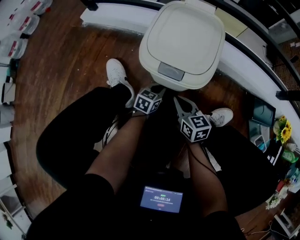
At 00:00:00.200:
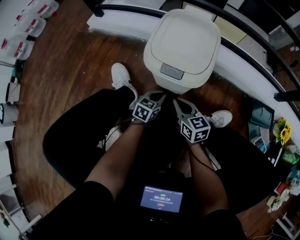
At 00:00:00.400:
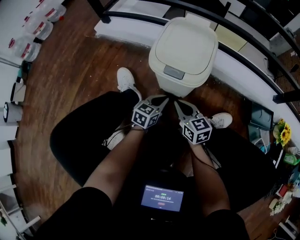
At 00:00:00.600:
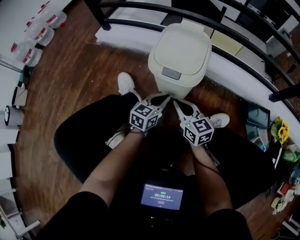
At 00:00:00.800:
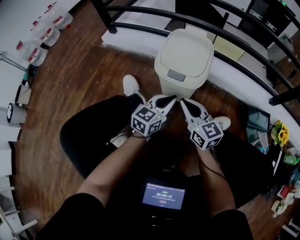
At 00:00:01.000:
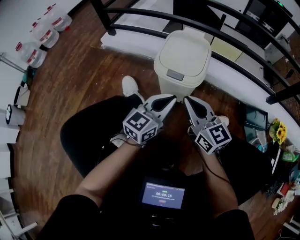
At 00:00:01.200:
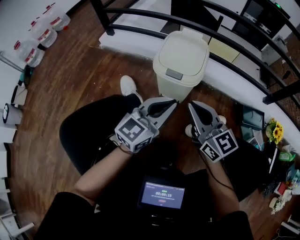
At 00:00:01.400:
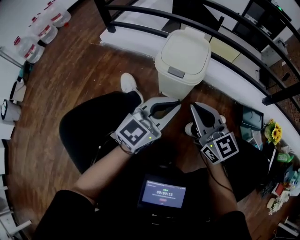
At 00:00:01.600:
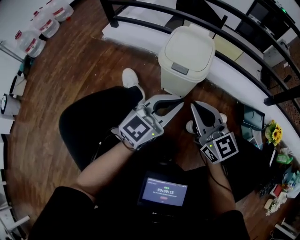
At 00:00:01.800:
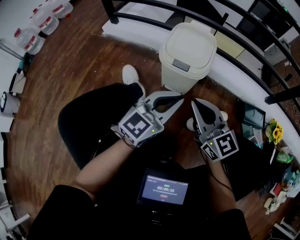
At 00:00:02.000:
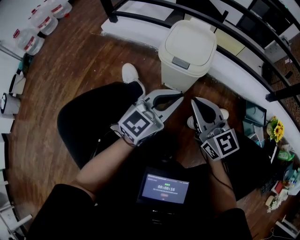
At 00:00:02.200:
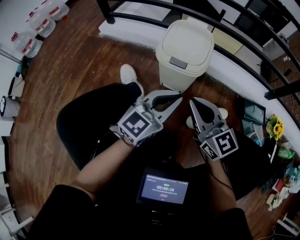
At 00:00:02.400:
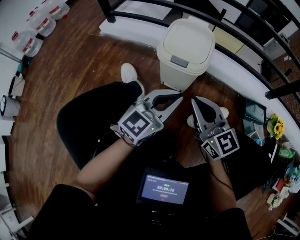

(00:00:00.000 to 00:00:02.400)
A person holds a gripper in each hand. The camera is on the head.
00:00:00.000 - 00:00:01.200: The right gripper moves upward, roughly 35 cm, and rotates some 30 degrees. Meanwhile the left gripper travels upward and backward by approximately 40 cm, and angles its fingers upward, by roughly 30 degrees.
00:00:01.200 - 00:00:02.400: The grippers move only a little.

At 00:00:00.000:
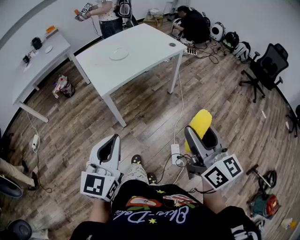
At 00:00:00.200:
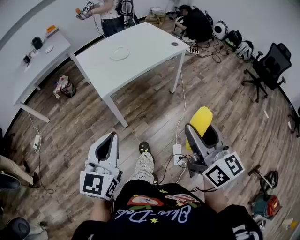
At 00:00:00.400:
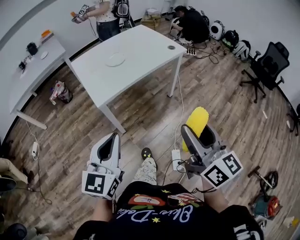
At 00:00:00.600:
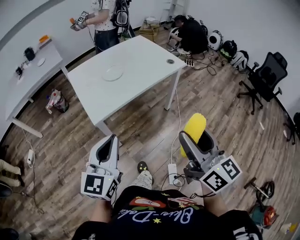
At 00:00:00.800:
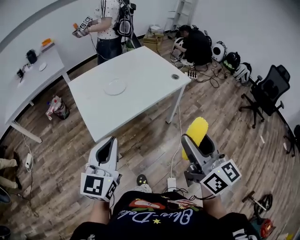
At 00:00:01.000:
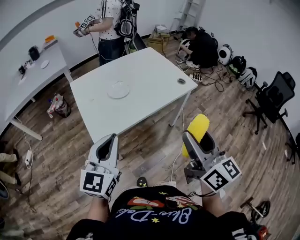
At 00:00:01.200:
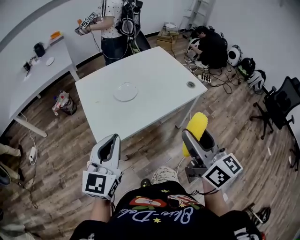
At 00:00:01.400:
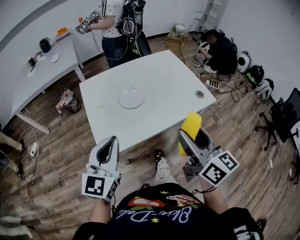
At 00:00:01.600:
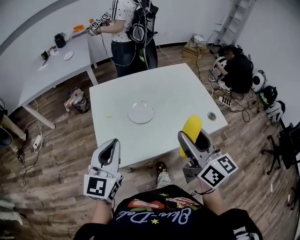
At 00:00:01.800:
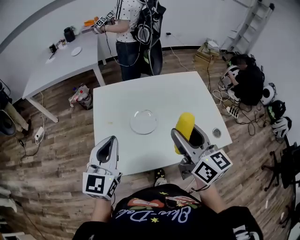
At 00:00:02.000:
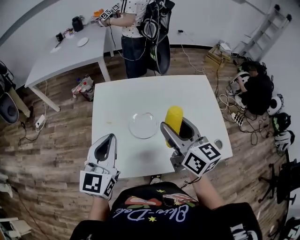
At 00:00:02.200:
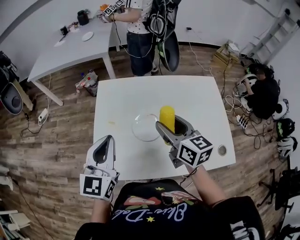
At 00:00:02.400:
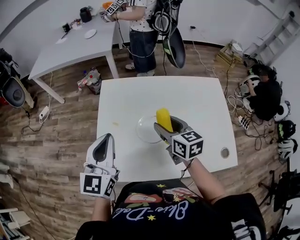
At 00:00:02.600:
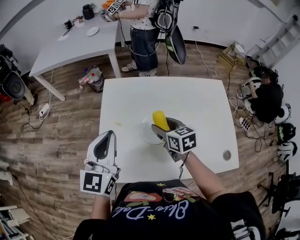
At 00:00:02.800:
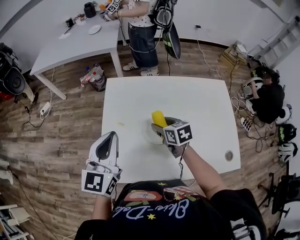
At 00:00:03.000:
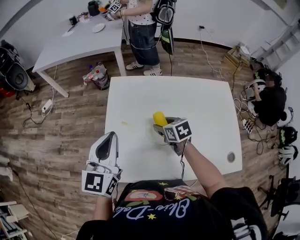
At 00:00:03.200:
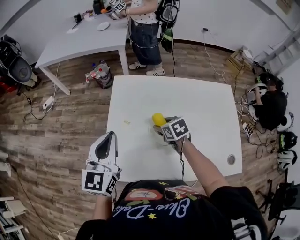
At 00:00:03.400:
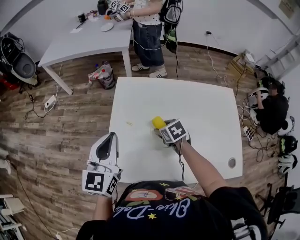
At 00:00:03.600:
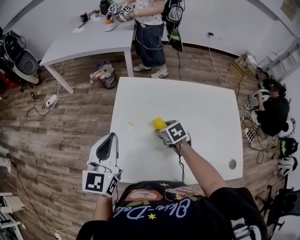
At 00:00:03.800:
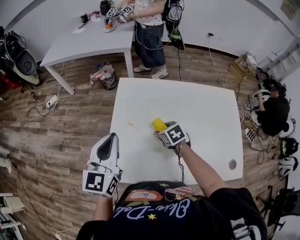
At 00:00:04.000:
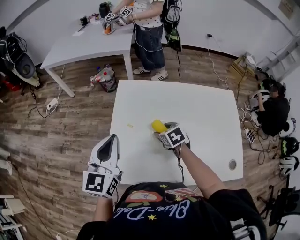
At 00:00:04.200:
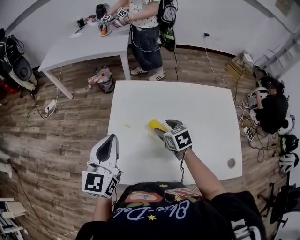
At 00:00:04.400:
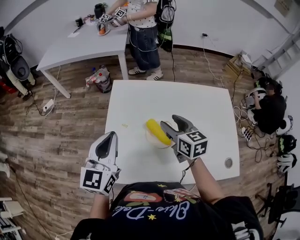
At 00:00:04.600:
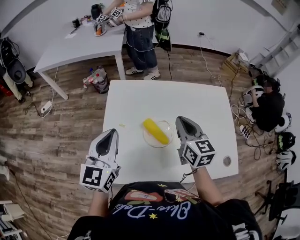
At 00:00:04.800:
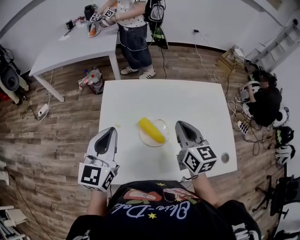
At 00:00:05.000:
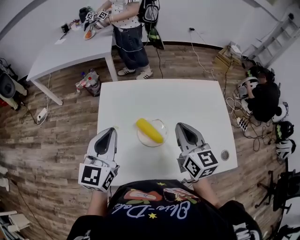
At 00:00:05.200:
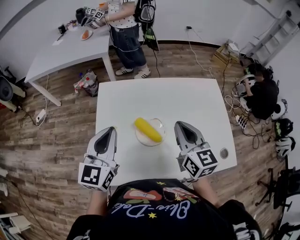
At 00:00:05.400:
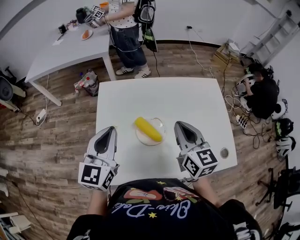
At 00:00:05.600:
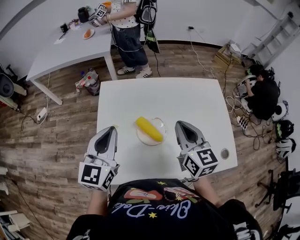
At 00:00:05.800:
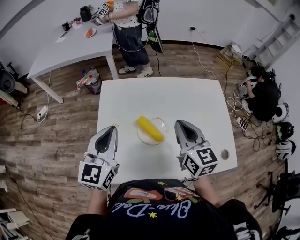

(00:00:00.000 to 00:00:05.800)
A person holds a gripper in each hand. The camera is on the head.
00:00:00.000 - 00:00:01.400: Both grippers are carried forward, some 40 cm.
00:00:01.400 - 00:00:02.800: The left gripper ends up approximately 25 cm from where it was, and rotates some 30 degrees. The right gripper shifts by approximately 50 cm, and tilts its fingers approximately 40 degrees downward.
00:00:02.800 - 00:00:04.400: The right gripper heads upward, covering roughly 10 cm.
00:00:04.400 - 00:00:05.800: The right gripper is displaced upward, to the right and backward by about 10 cm, and closes up.

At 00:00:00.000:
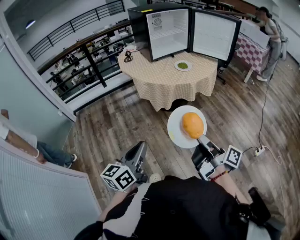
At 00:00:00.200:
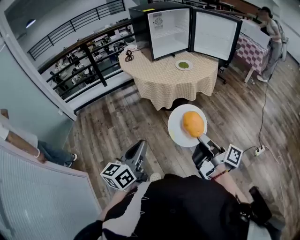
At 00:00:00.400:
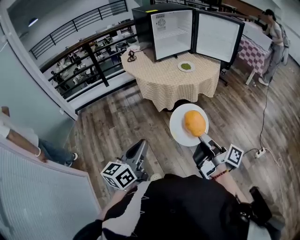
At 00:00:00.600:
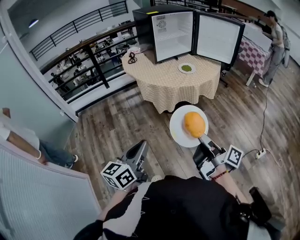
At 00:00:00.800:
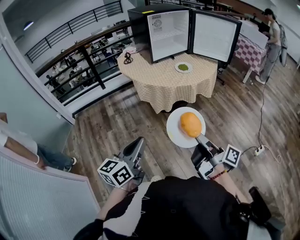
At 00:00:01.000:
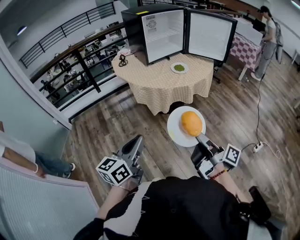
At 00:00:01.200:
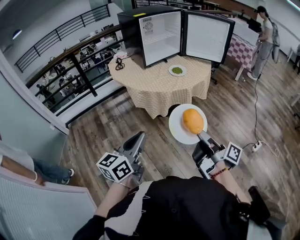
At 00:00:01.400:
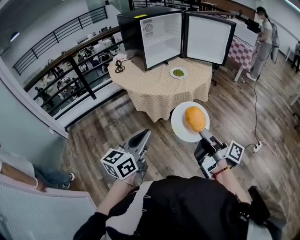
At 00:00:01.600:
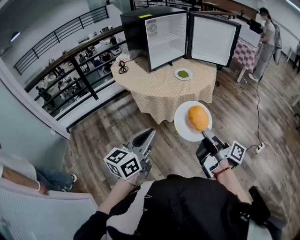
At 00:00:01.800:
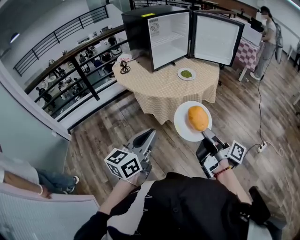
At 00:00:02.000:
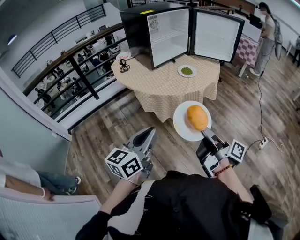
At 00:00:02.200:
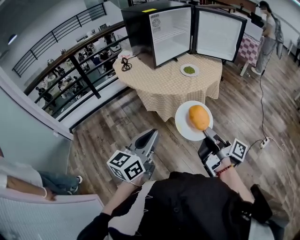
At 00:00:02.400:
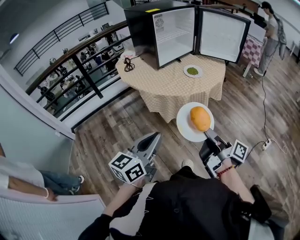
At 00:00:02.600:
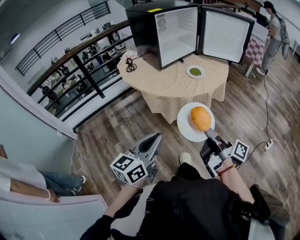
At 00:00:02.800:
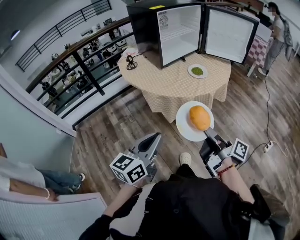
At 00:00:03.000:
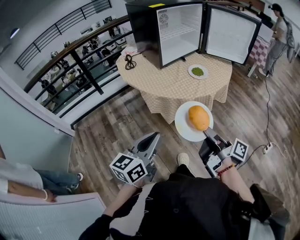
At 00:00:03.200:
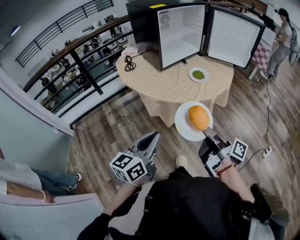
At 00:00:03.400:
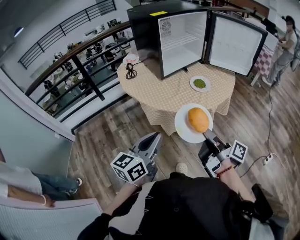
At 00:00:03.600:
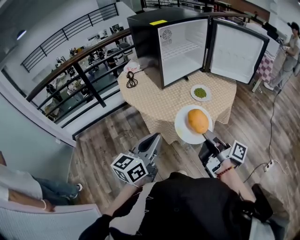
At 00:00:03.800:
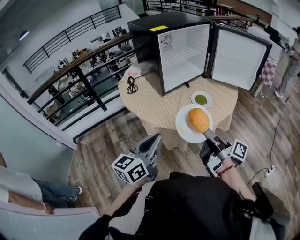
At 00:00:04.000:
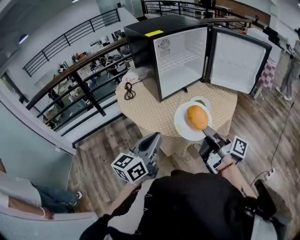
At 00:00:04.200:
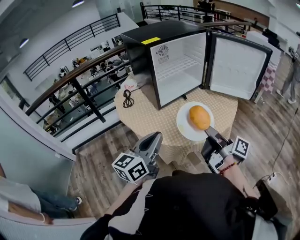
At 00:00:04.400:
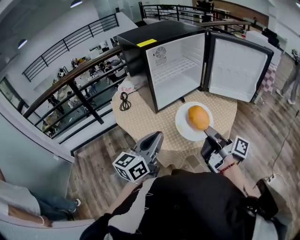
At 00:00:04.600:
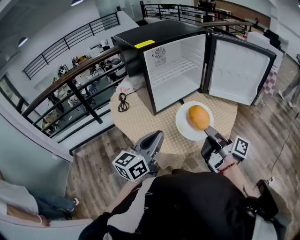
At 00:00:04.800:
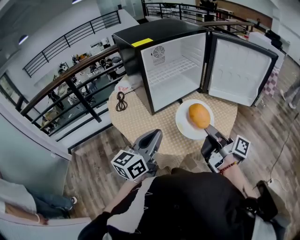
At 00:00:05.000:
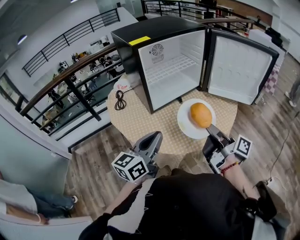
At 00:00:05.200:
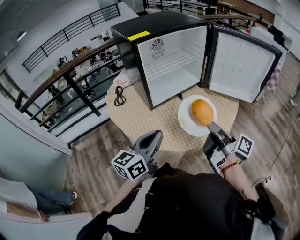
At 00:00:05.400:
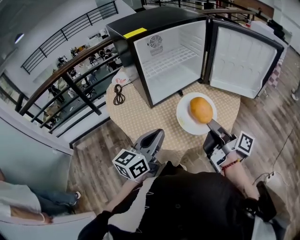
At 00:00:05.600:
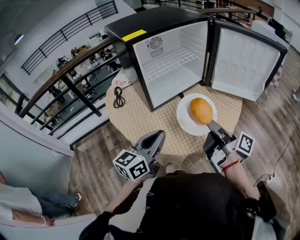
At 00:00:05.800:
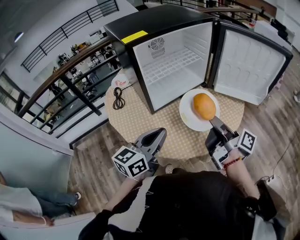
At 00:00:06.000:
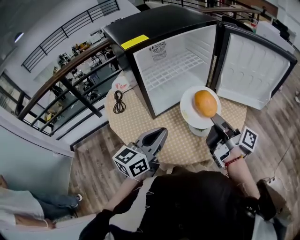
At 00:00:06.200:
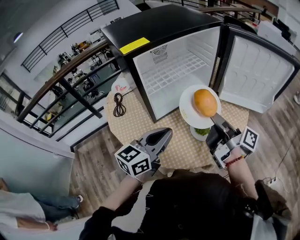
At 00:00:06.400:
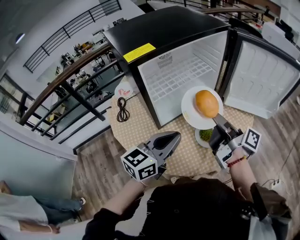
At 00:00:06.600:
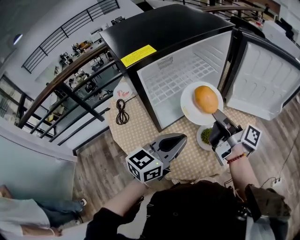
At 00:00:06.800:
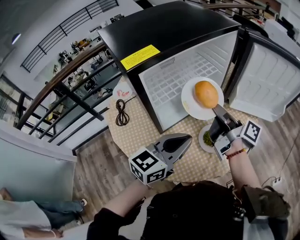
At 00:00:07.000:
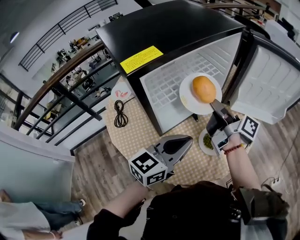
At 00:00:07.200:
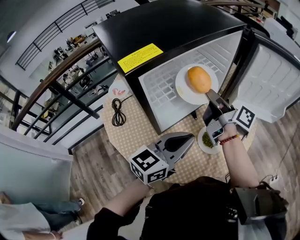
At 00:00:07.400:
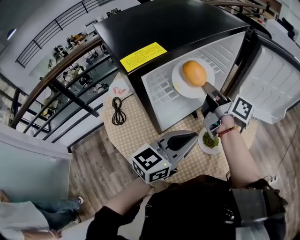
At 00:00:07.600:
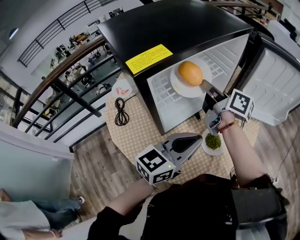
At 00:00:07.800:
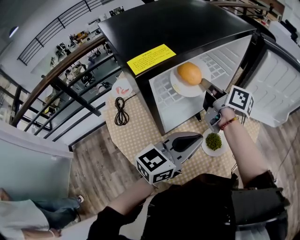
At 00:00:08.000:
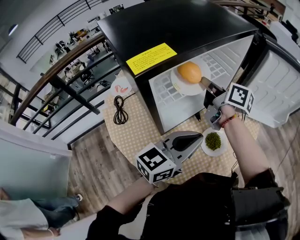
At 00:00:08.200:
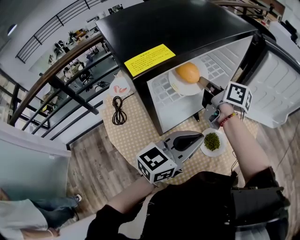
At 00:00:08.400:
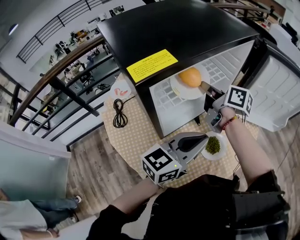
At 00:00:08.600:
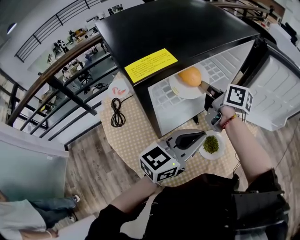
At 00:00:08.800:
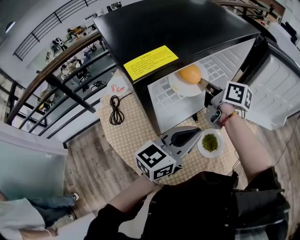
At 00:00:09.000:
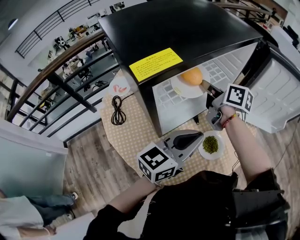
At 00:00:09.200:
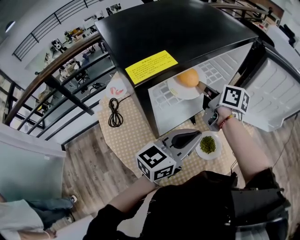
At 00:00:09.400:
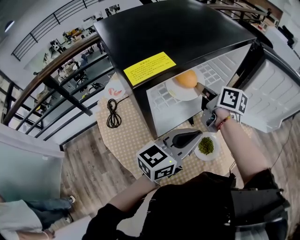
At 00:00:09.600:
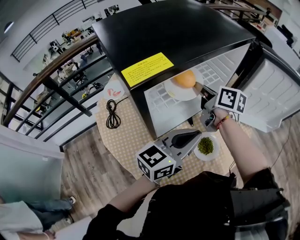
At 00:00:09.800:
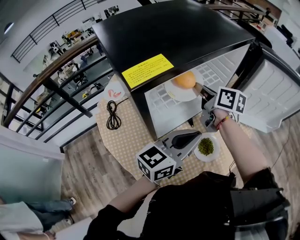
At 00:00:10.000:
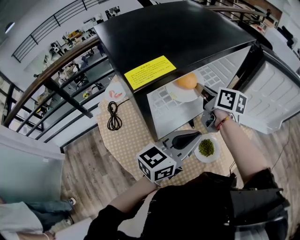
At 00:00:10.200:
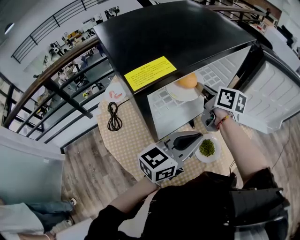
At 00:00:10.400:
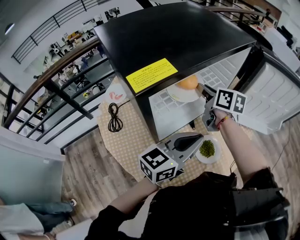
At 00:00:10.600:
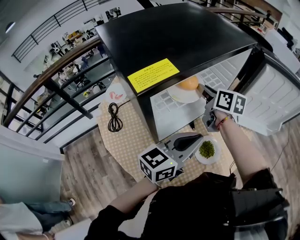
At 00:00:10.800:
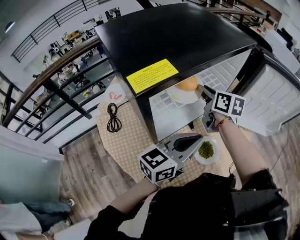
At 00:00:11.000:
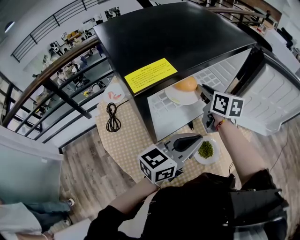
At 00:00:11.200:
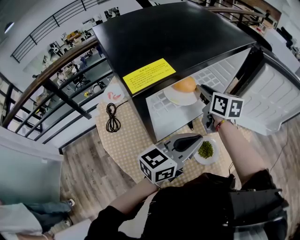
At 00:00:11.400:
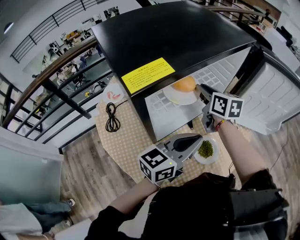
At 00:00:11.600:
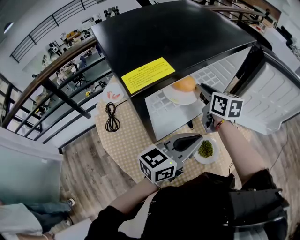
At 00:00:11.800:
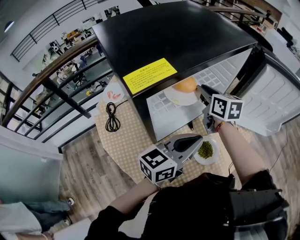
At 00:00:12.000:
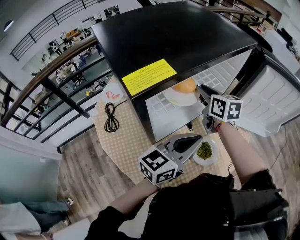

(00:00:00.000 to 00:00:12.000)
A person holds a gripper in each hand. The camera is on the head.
00:00:00.000 - 00:00:01.600: The right gripper heads forward and to the left, covering roughly 15 cm, while the left gripper travels forward by roughly 15 cm.
00:00:01.600 - 00:00:03.000: Both grippers move forward, roughly 5 cm.
00:00:03.000 - 00:00:04.400: The grippers both shift forward by roughly 25 cm.
00:00:04.400 - 00:00:06.000: The grippers both shift forward by roughly 15 cm.
00:00:06.000 - 00:00:07.600: The left gripper heads forward, covering some 10 cm. Meanwhile the right gripper travels forward and to the left by about 25 cm, and turns by roughly 30 degrees.
00:00:07.600 - 00:00:09.000: The grippers make only small movements.
00:00:09.000 - 00:00:10.400: The grippers make only small movements.
00:00:10.400 - 00:00:12.000: There are only small adjustments of the grippers.

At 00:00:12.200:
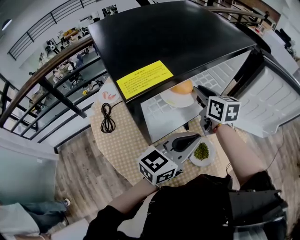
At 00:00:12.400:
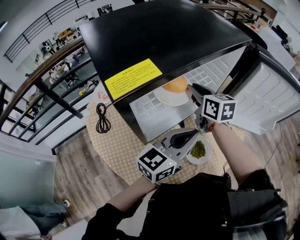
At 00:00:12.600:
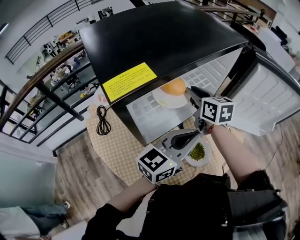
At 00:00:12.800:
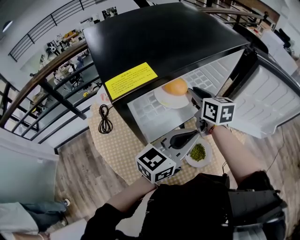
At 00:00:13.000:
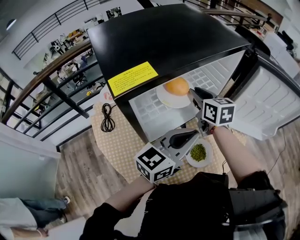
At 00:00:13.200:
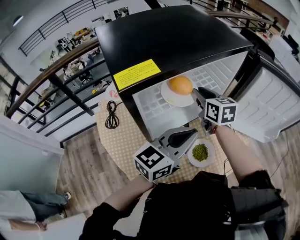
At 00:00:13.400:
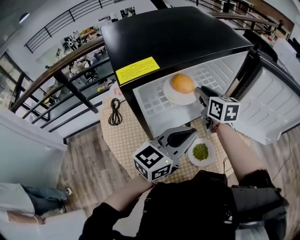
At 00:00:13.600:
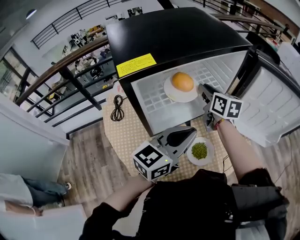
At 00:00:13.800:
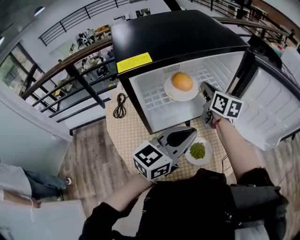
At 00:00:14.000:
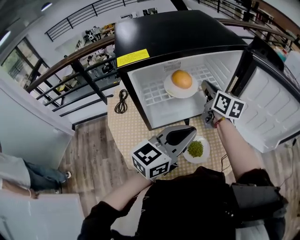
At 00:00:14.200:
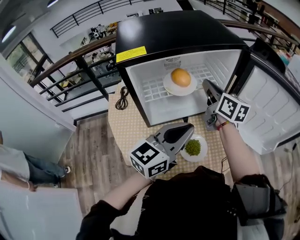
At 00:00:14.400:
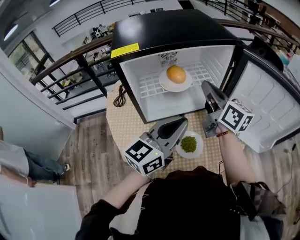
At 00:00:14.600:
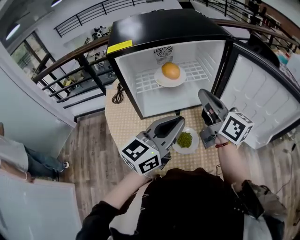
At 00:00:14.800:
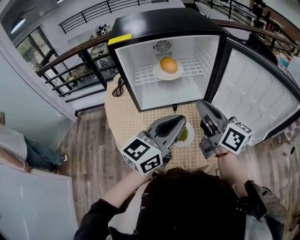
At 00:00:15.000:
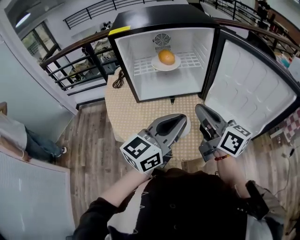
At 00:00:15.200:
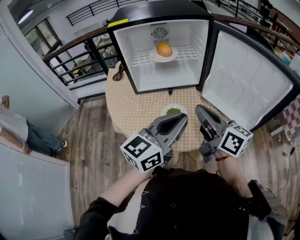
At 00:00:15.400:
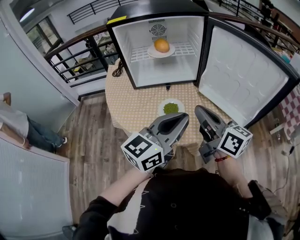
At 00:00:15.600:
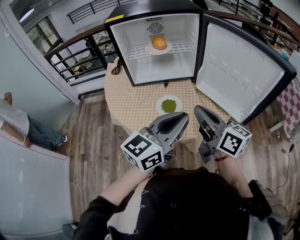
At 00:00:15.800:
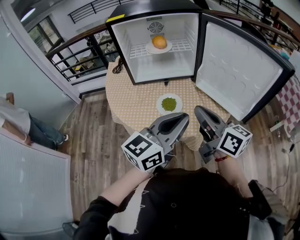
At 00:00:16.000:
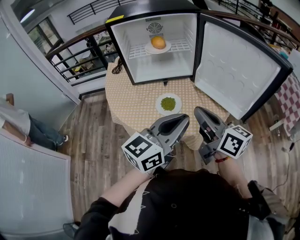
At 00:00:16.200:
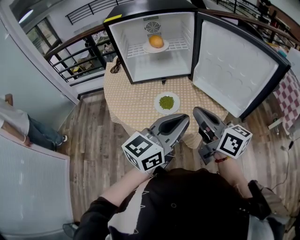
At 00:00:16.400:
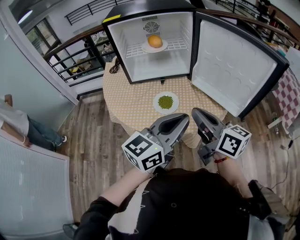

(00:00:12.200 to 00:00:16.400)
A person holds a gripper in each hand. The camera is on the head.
00:00:12.200 - 00:00:13.600: There are only small adjustments of the grippers.
00:00:13.600 - 00:00:15.000: The right gripper shifts by about 30 cm, and swivels about 40 degrees. The left gripper ends up some 20 cm from where it was, and changes its angle by some 20 degrees.
00:00:15.000 - 00:00:16.400: Both grippers travel together backward and to the right, some 15 cm.
